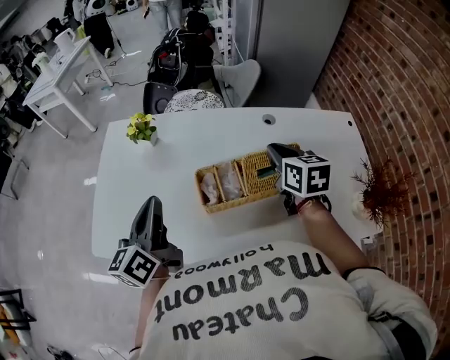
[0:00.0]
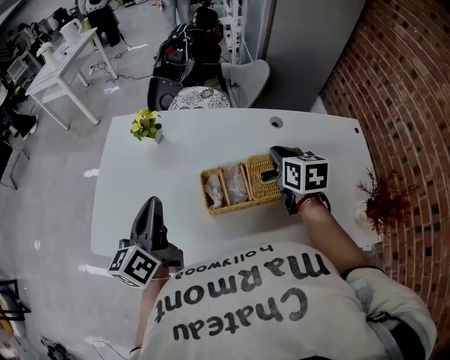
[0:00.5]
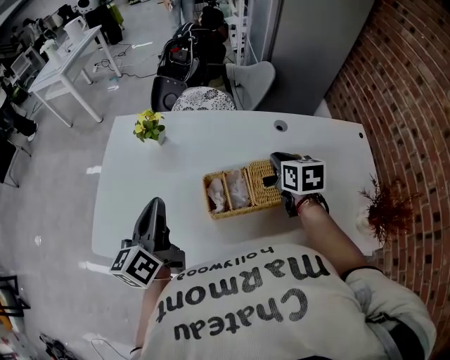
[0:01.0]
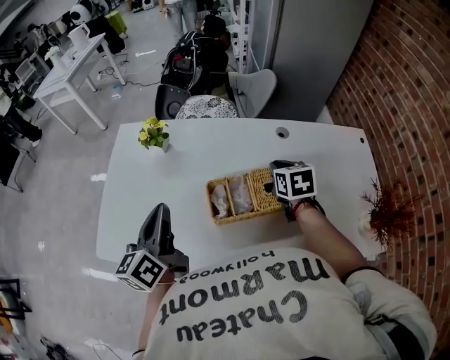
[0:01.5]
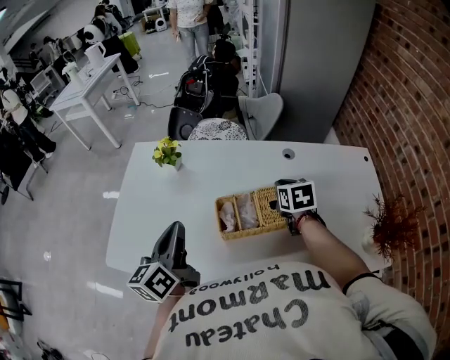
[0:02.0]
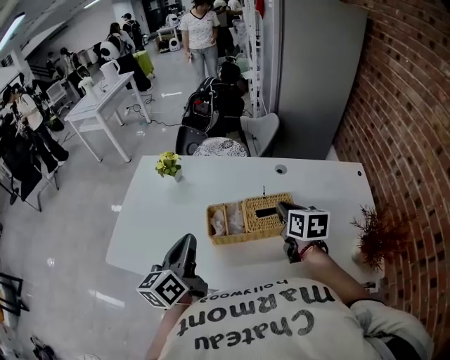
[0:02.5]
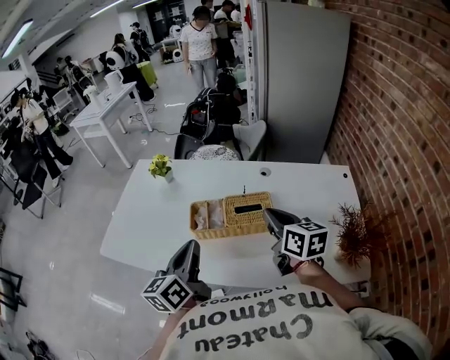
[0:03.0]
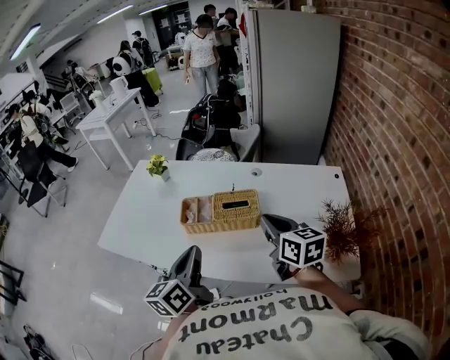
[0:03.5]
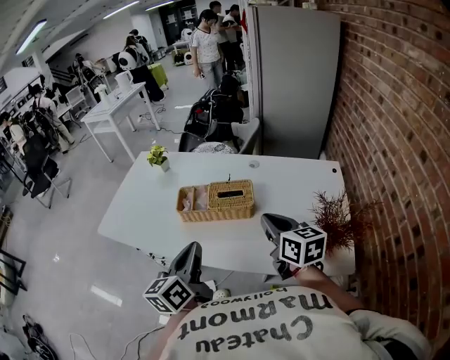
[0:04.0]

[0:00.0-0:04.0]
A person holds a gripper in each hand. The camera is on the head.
0.0 to 2.0 s: The right gripper travels downward by some 10 cm.
2.0 to 4.0 s: The right gripper travels backward, upward and to the right by about 30 cm, and swivels roughly 30 degrees. The left gripper goes some 35 cm backward and to the right.

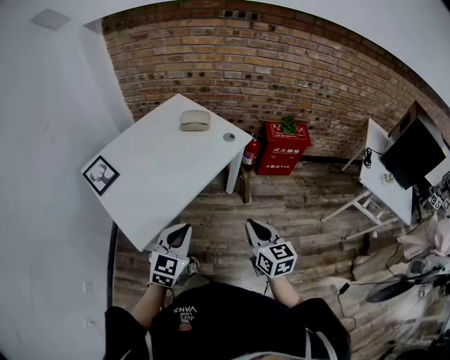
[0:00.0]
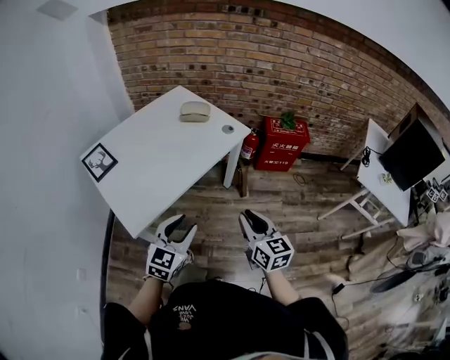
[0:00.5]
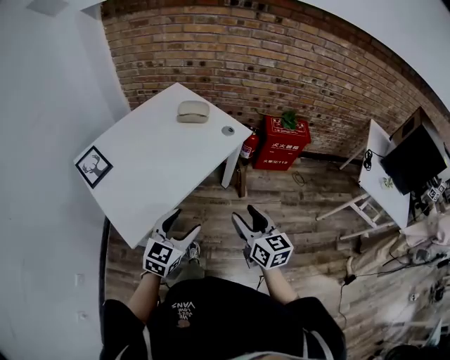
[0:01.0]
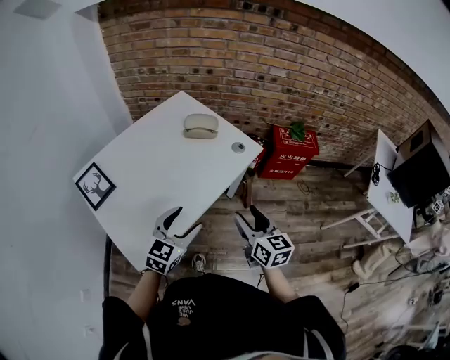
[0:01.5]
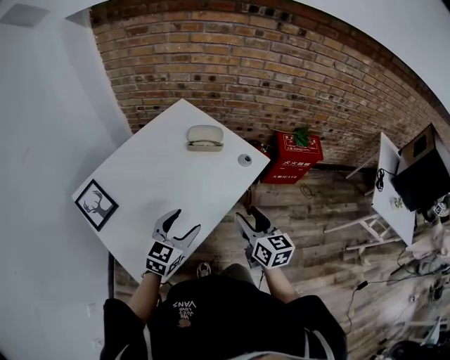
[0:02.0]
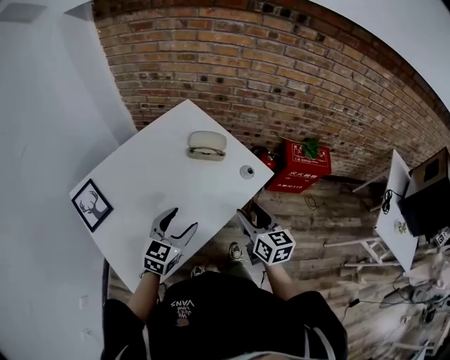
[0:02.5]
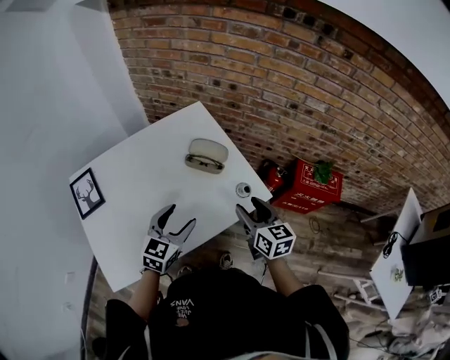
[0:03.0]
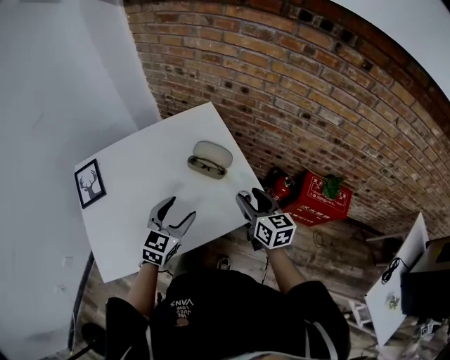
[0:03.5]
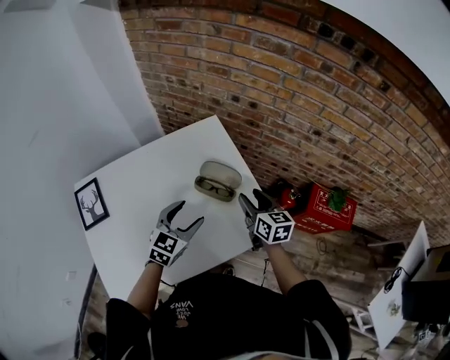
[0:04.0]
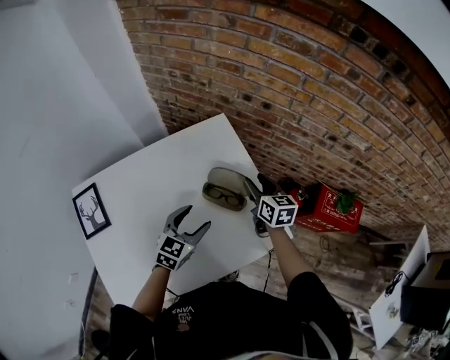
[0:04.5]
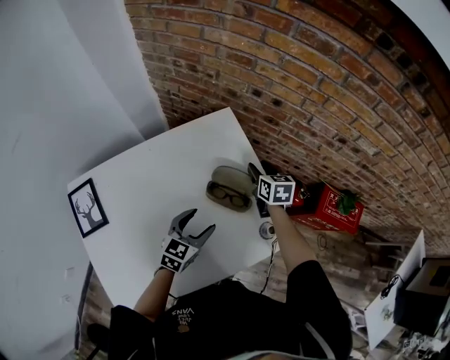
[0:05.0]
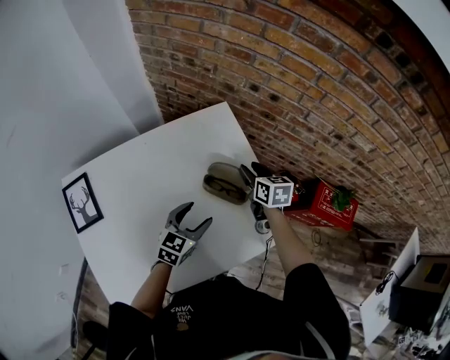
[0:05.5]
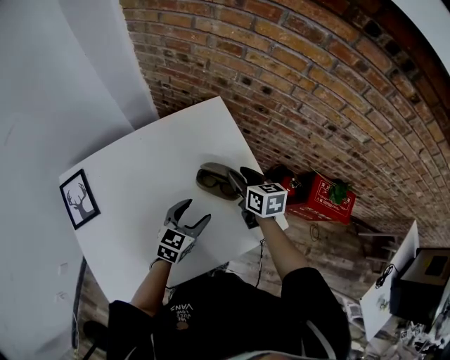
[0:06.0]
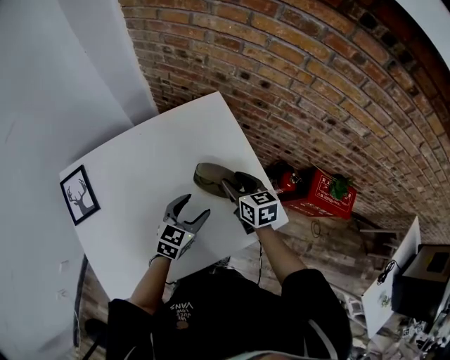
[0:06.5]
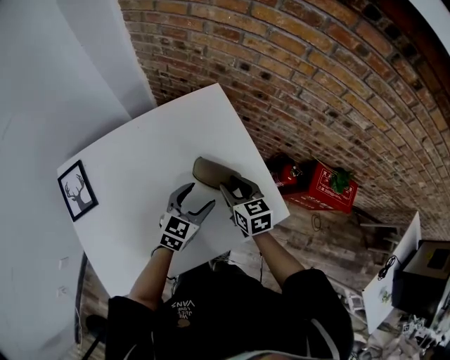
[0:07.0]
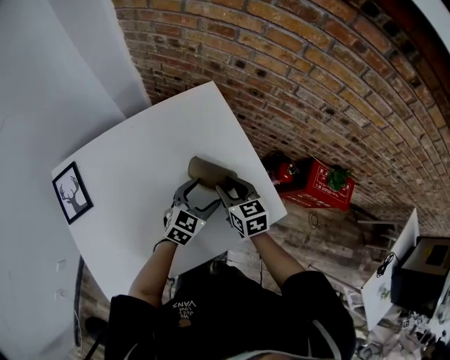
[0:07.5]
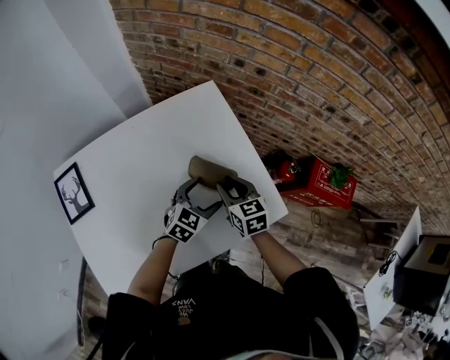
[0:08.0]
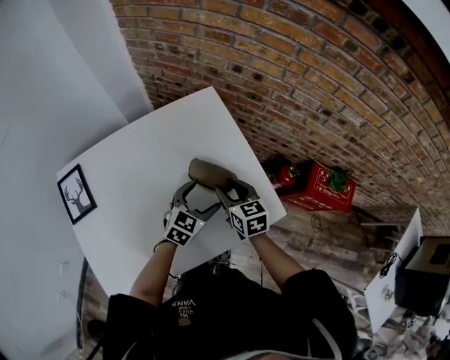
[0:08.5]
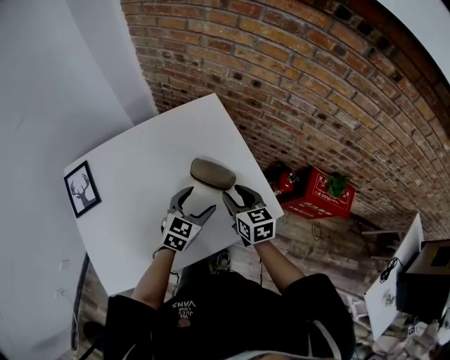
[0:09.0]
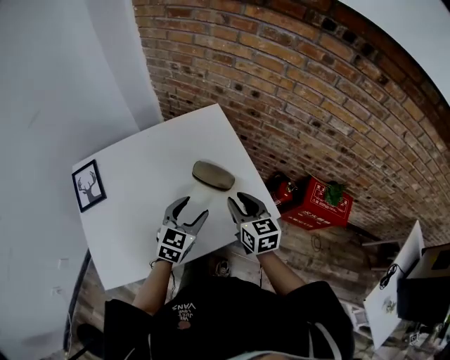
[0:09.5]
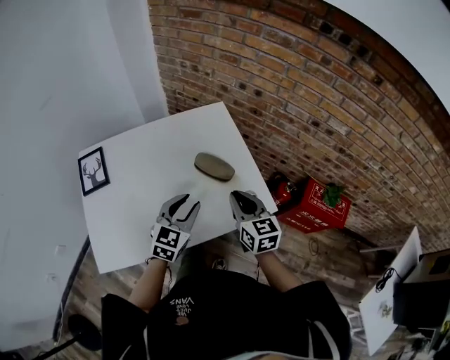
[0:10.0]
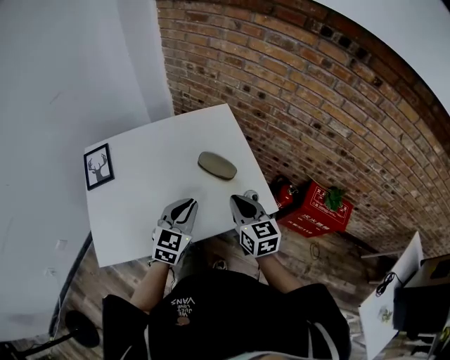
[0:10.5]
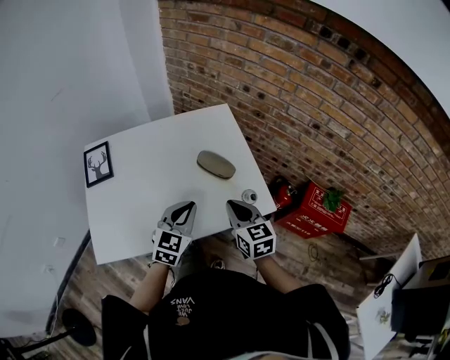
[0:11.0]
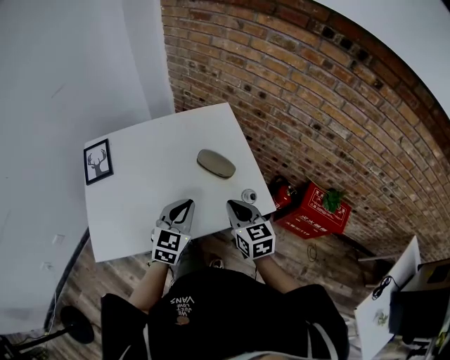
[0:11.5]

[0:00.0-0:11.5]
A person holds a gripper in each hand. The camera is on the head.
0.0 to 2.0 s: The left gripper shifts approximately 20 cm forward, and opens its fingers, while the right gripper moves forward and to the left, about 25 cm, and opens its fingers.
2.0 to 4.0 s: The right gripper changes place by approximately 35 cm, and rotates roughly 20 degrees, while the left gripper moves approximately 25 cm, and changes its angle by approximately 20 degrees.
4.0 to 6.0 s: The right gripper travels forward and to the left by about 10 cm. The left gripper is displaced downward by approximately 10 cm.
6.0 to 7.5 s: The right gripper heads backward, covering approximately 10 cm; the left gripper moves roughly 5 cm.
7.5 to 9.5 s: The right gripper travels upward and backward by roughly 10 cm, while the left gripper is displaced backward and upward by about 10 cm.
9.5 to 11.5 s: Both grippers travel together backward, roughly 10 cm. The left gripper closes. The right gripper closes its fingers.

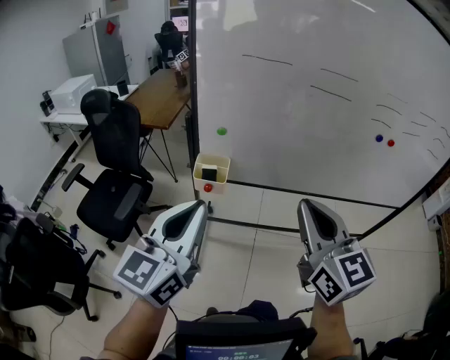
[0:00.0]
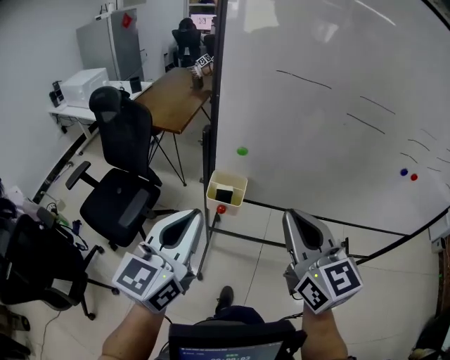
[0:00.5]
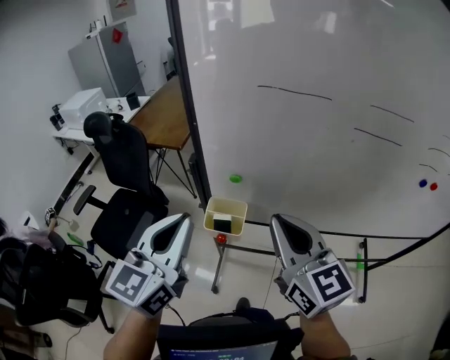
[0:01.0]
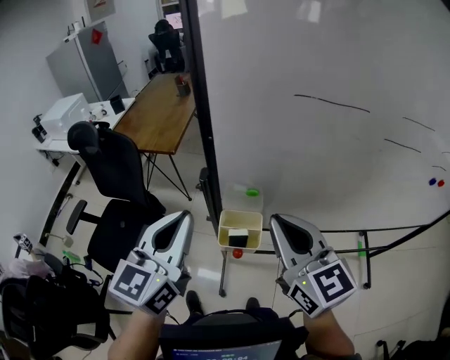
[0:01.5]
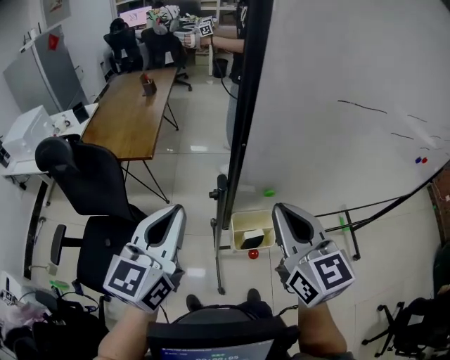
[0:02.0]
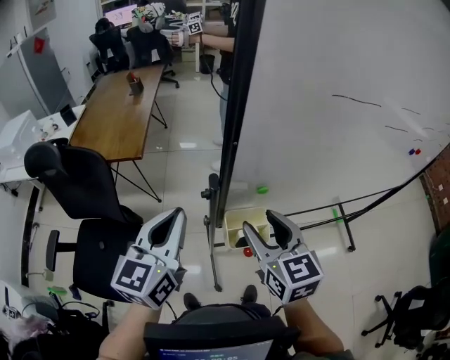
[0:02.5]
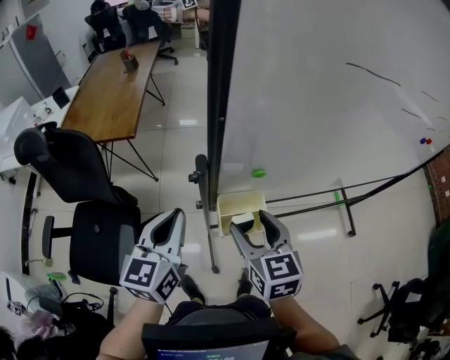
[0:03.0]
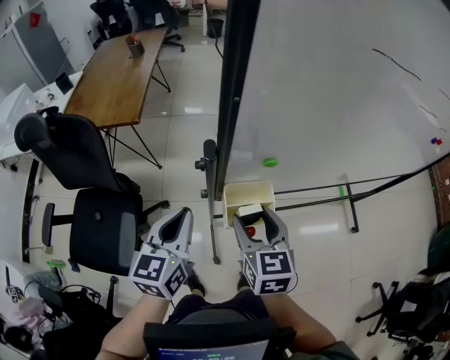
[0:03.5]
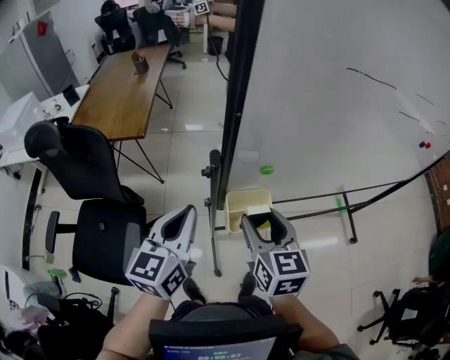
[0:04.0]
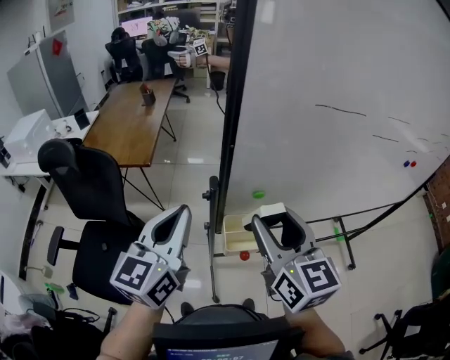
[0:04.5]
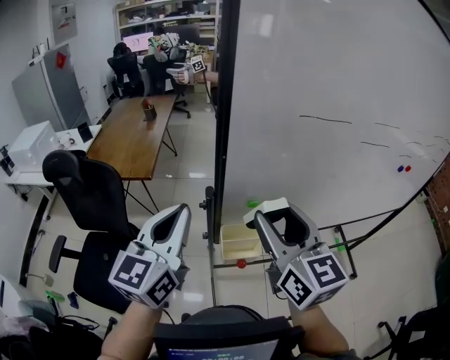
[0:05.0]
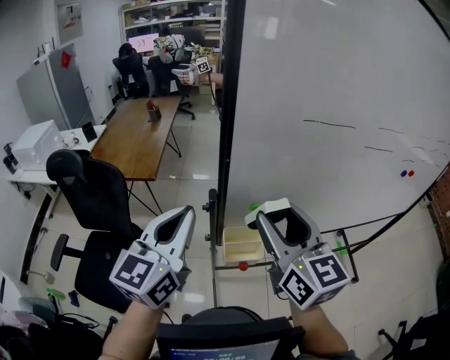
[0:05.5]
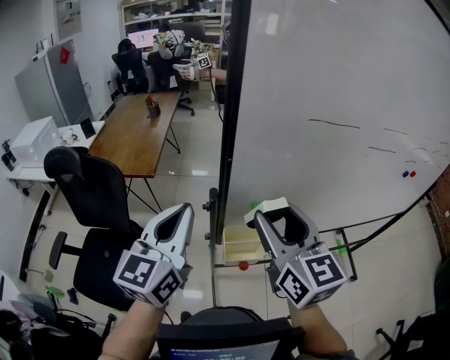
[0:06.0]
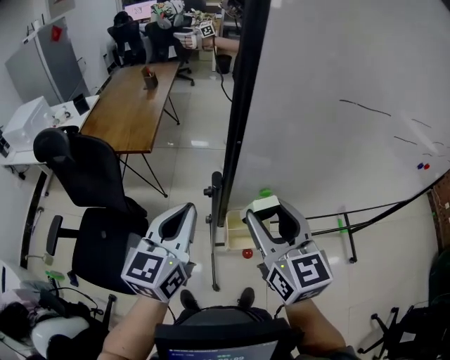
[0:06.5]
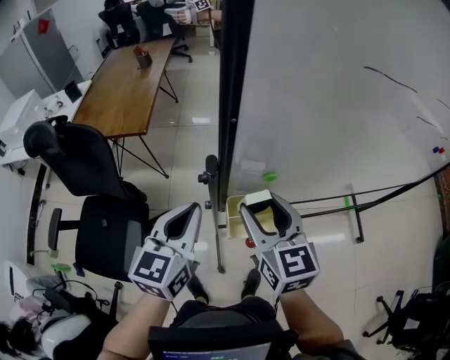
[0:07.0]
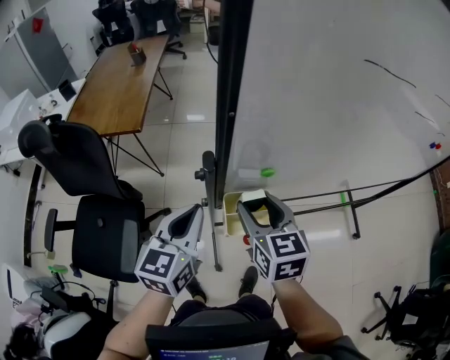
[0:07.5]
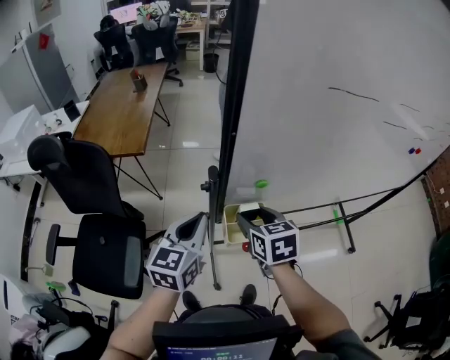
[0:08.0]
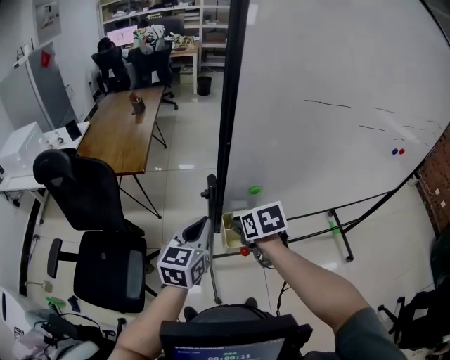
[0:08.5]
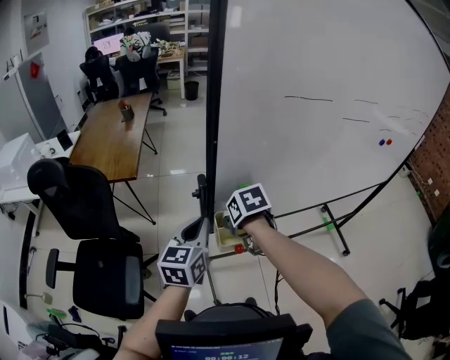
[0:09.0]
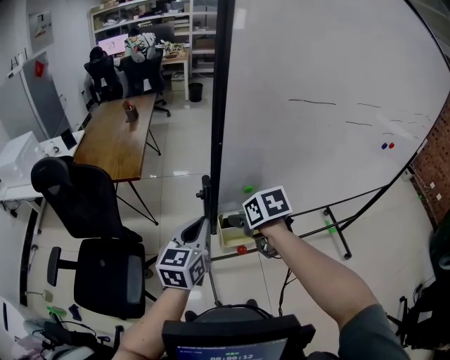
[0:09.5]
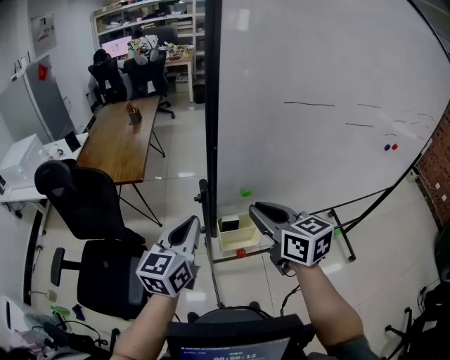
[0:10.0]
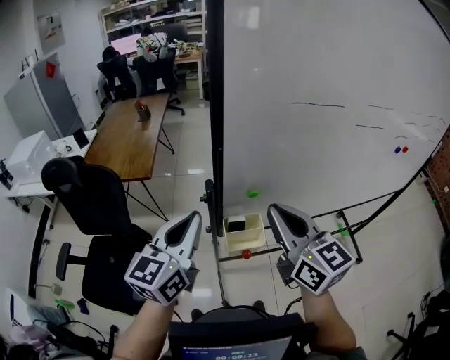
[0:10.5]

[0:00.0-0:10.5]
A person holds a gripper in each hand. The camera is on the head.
0.0 to 2.0 s: The two grippers go approximately 40 cm forward and to the left.
2.0 to 4.0 s: Both grippers move downward, approximately 15 cm. The right gripper opens its fingers.
4.0 to 6.5 s: The right gripper heads upward, covering about 10 cm. Meanwhile the left gripper moves upward, approximately 5 cm.
6.5 to 8.5 s: The right gripper is displaced downward by some 15 cm, and angles its fingers downward, by roughly 50 degrees. The left gripper moves downward, some 5 cm.
8.5 to 10.5 s: The right gripper heads upward, covering about 25 cm, points its fingers some 50 degrees further upward, and closes. The left gripper shifts about 15 cm upward.

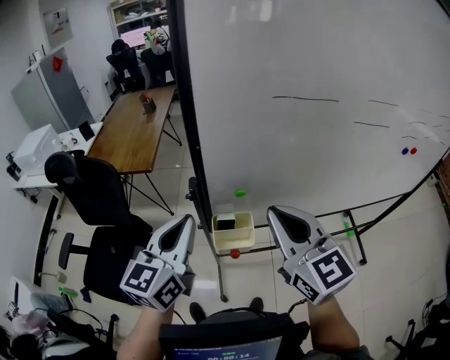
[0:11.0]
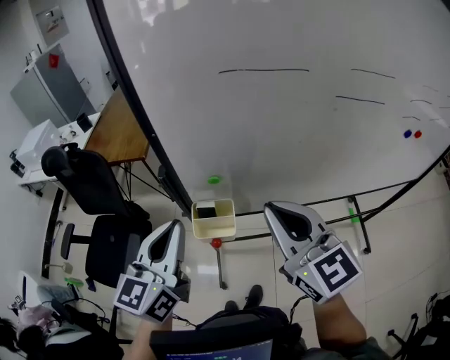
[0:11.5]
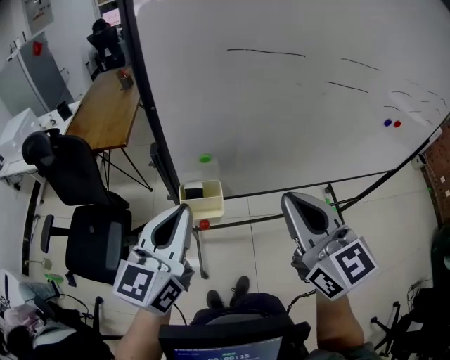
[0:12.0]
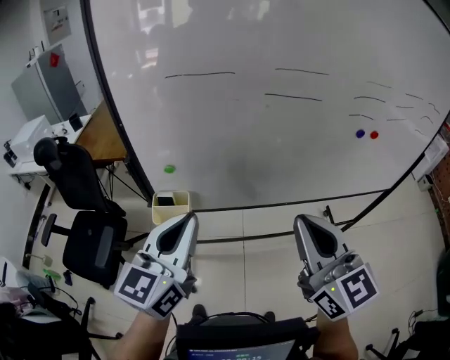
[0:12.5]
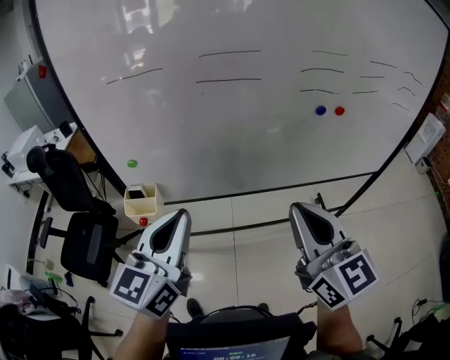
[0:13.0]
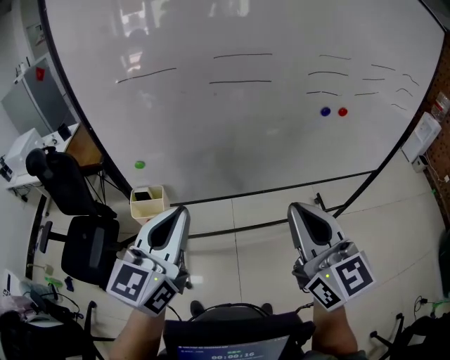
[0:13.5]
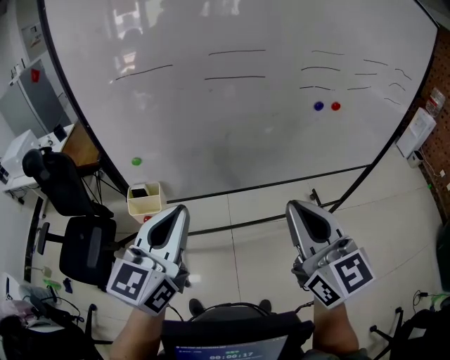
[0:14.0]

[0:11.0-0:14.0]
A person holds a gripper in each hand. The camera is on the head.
11.0 to 12.5 s: Both grippers move to the right and backward, roughly 25 cm.
12.5 to 14.0 s: Both grippers travel together to the right, approximately 10 cm.
